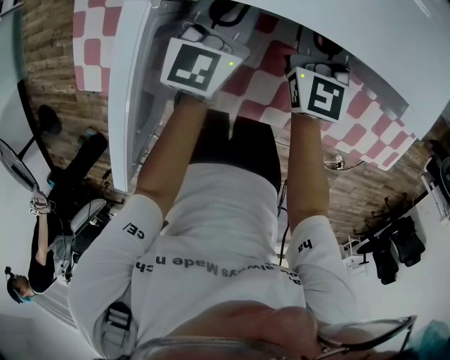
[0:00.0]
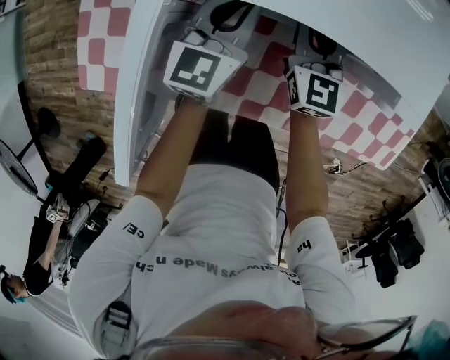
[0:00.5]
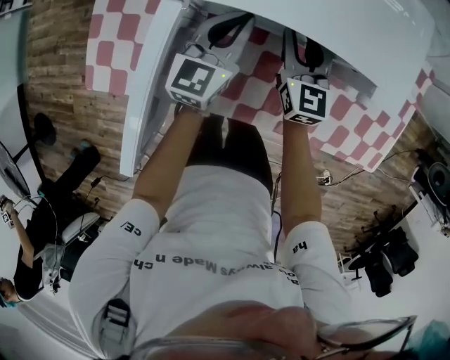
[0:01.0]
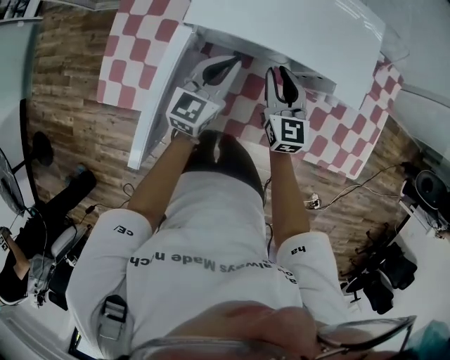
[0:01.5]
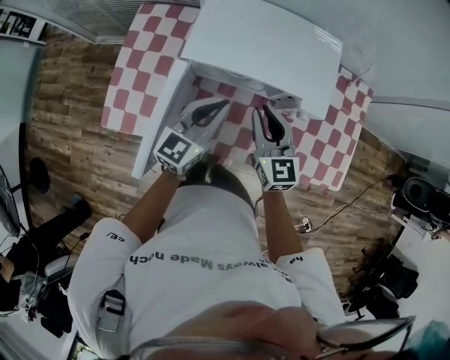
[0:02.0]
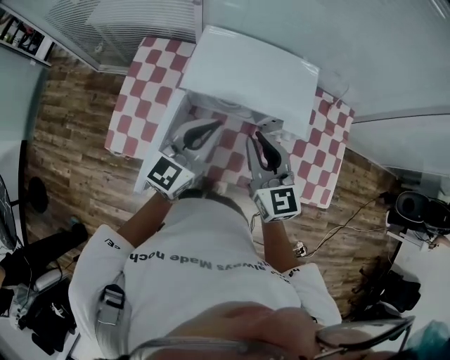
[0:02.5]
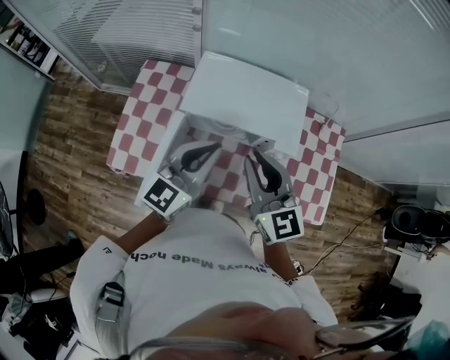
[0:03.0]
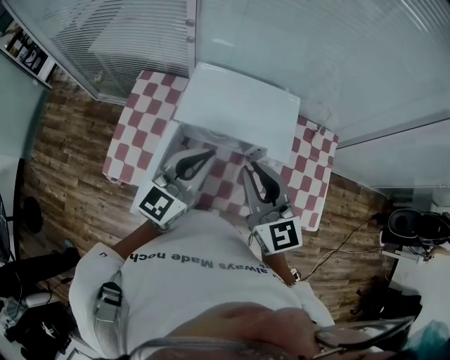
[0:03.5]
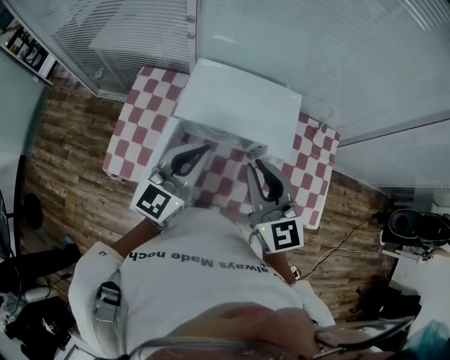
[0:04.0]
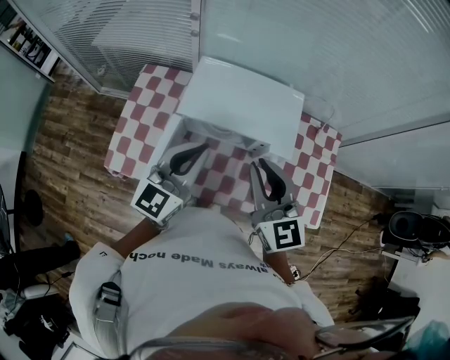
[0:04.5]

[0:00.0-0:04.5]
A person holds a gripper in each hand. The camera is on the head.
0:00.0 to 0:02.0: Both grippers travel together upward and backward, about 25 cm.
0:02.0 to 0:04.5: The two grippers go about 20 cm upward.

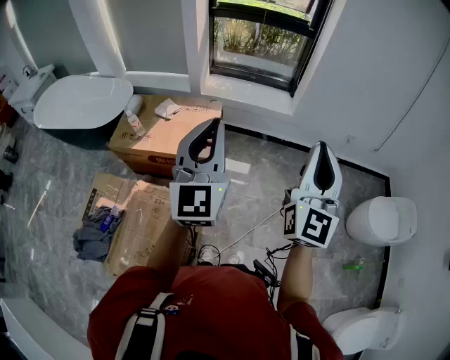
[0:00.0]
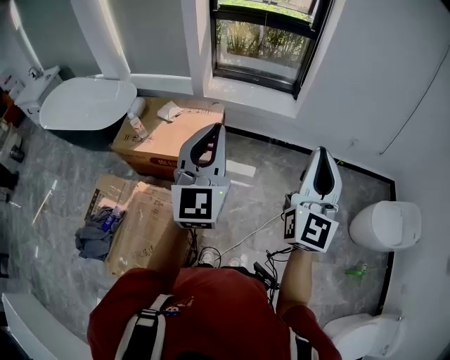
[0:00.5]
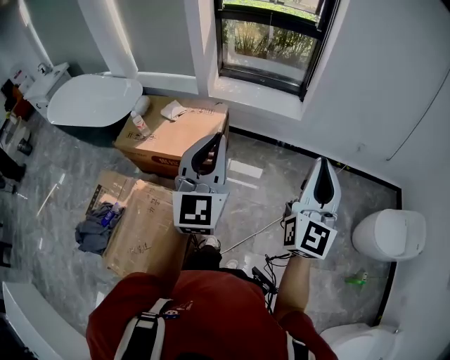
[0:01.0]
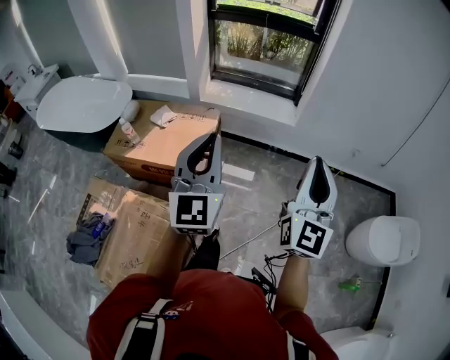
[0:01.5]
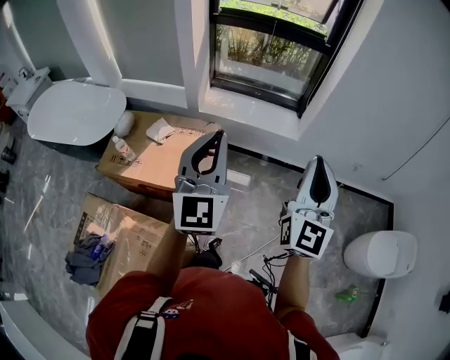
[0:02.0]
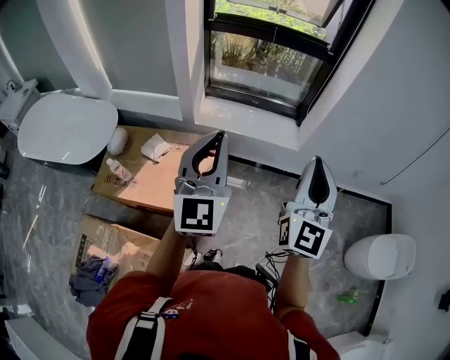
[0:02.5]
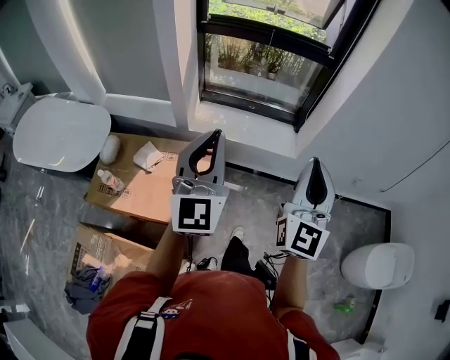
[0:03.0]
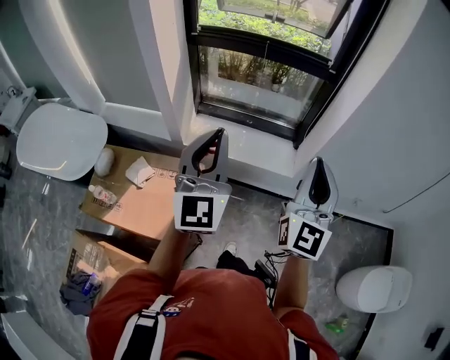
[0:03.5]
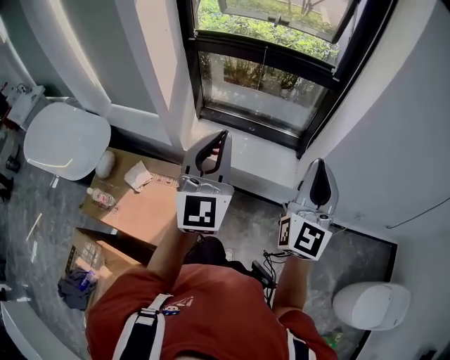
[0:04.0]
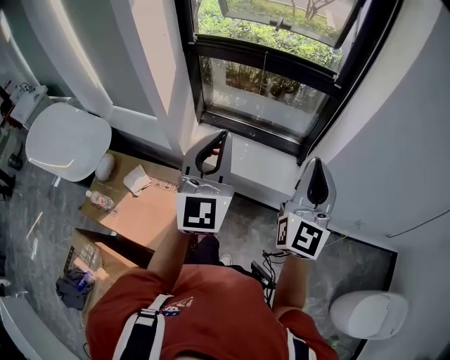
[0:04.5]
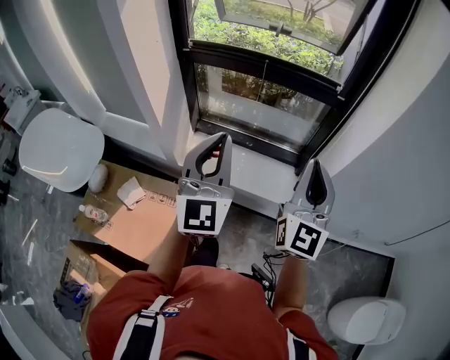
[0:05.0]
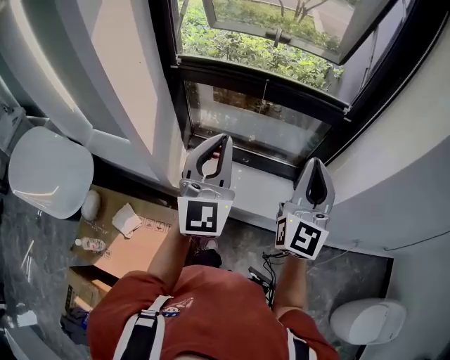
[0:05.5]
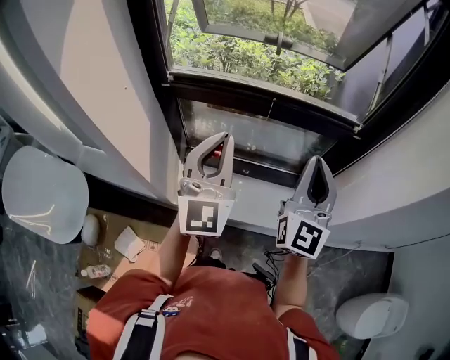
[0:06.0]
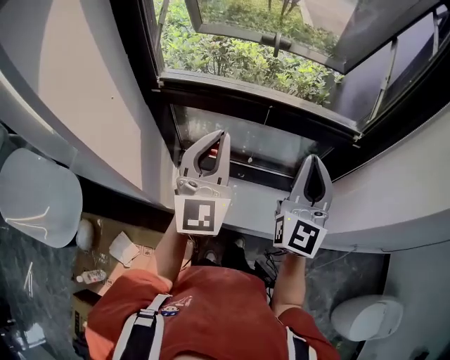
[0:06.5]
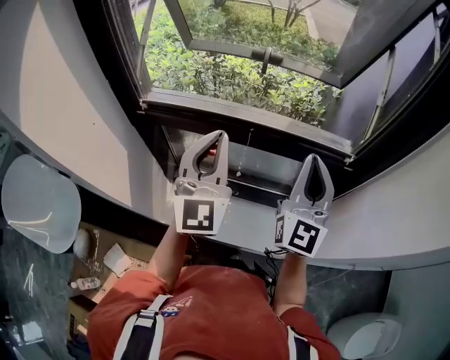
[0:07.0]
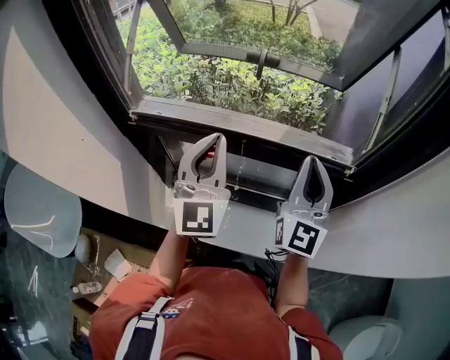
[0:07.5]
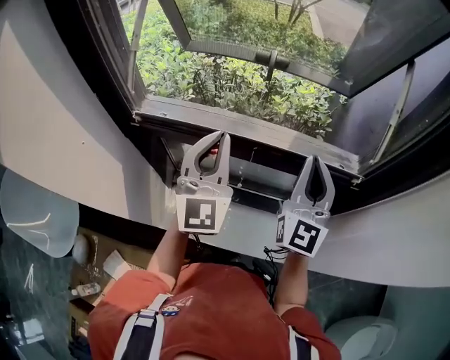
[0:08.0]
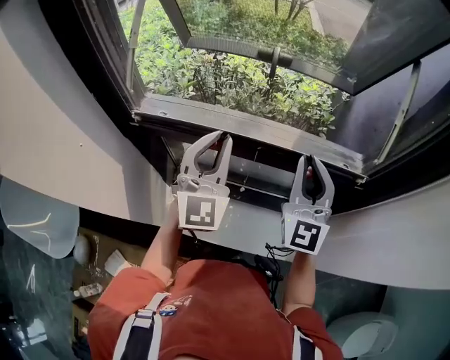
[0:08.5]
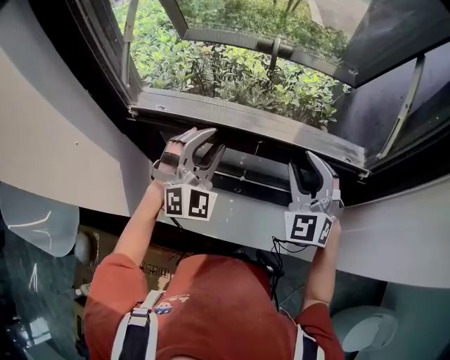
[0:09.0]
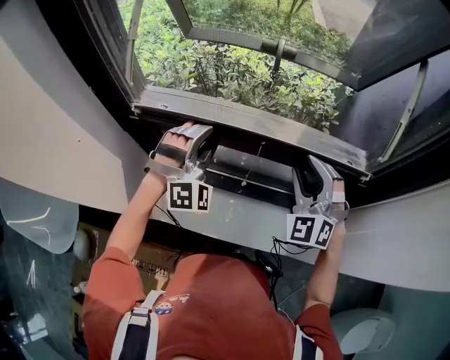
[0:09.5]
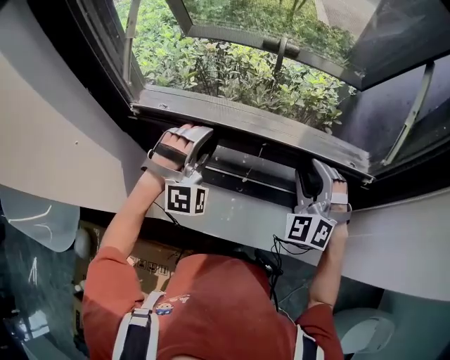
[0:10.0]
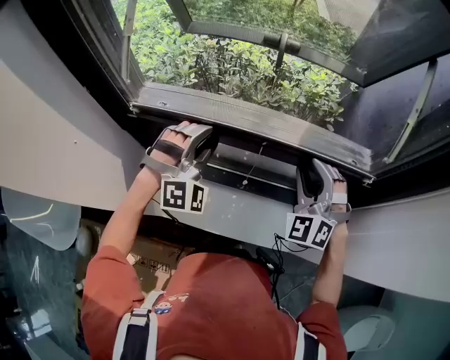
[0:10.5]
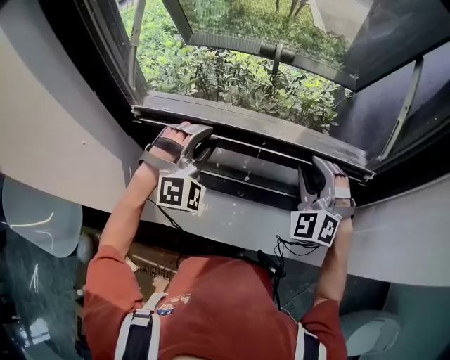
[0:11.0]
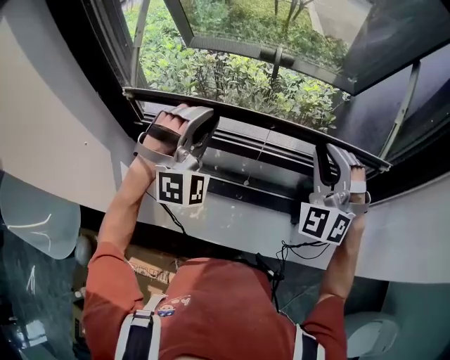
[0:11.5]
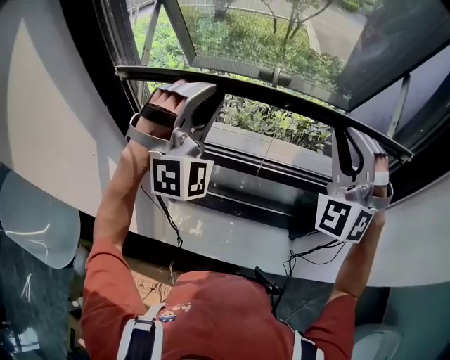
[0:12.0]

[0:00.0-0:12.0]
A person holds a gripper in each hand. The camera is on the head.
0:00.0 to 0:02.0: The two grippers go about 20 cm forward.
0:02.0 to 0:04.0: Both grippers travel together forward, some 35 cm.
0:04.0 to 0:06.0: The grippers both shift forward by approximately 30 cm.
0:06.0 to 0:08.0: The two grippers go roughly 20 cm forward.
0:08.0 to 0:10.0: Both grippers move downward, about 10 cm. The right gripper twists about 50 degrees counterclockwise, seen from behind, and opens its fingers. The left gripper twists some 70 degrees clockwise, seen from behind, and opens.
0:10.0 to 0:12.0: Both grippers travel together upward, roughly 20 cm. The left gripper swivels approximately 20 degrees, and closes its fingers, while the right gripper rotates some 30 degrees, and closes up.

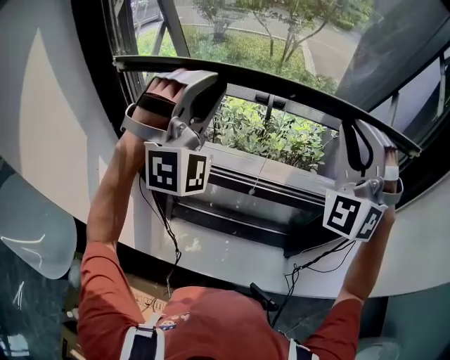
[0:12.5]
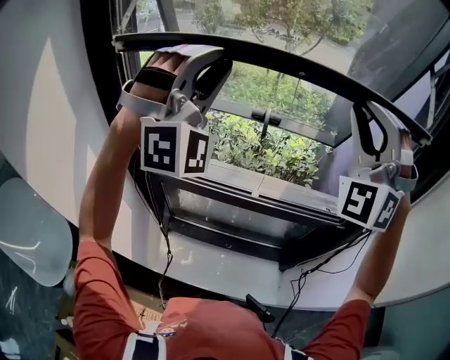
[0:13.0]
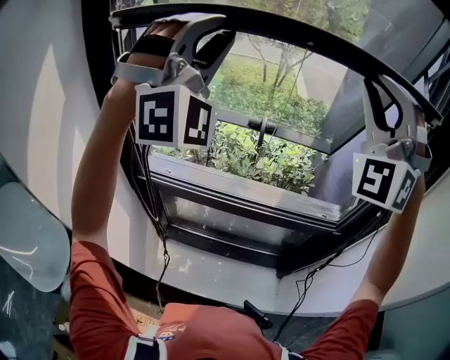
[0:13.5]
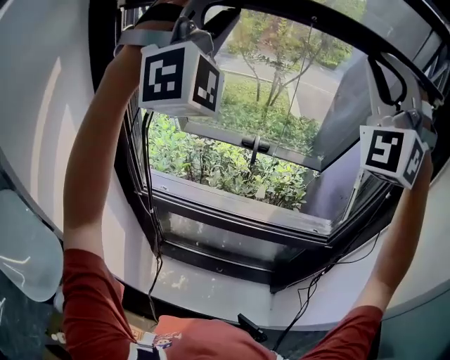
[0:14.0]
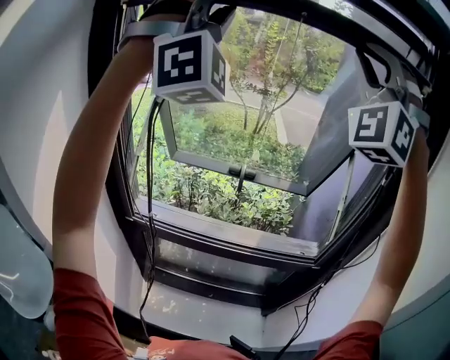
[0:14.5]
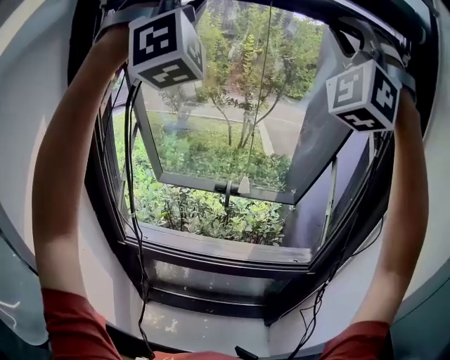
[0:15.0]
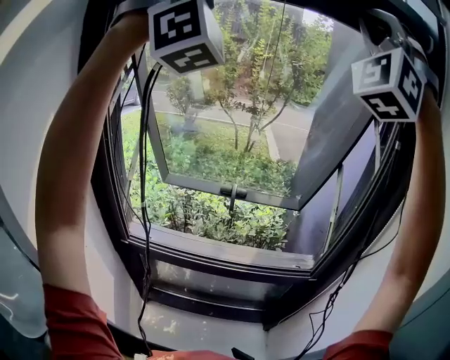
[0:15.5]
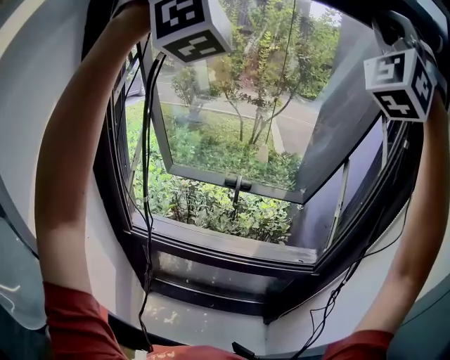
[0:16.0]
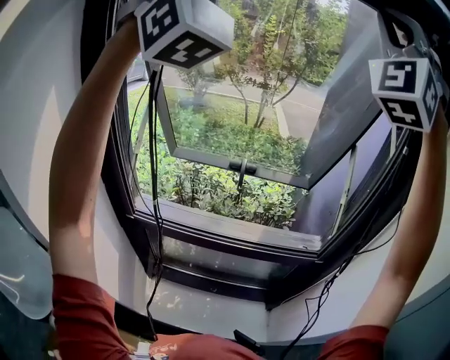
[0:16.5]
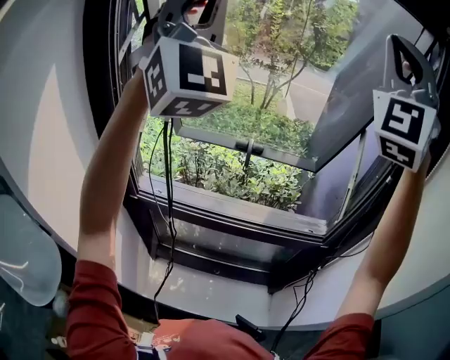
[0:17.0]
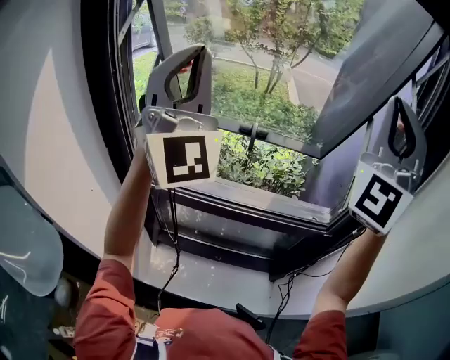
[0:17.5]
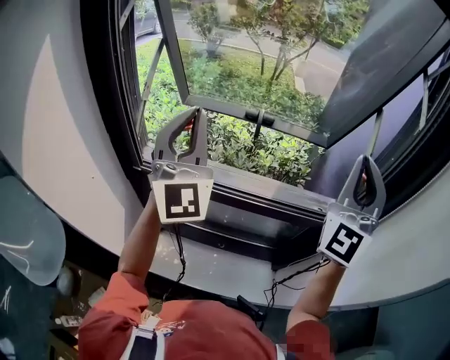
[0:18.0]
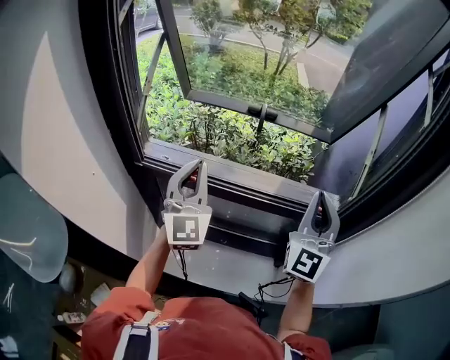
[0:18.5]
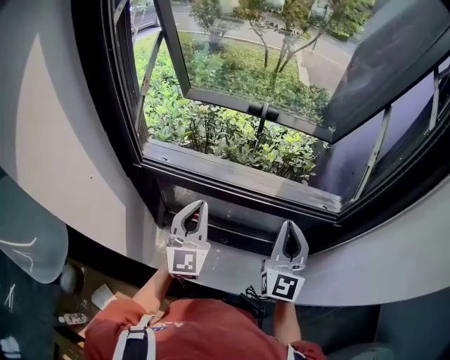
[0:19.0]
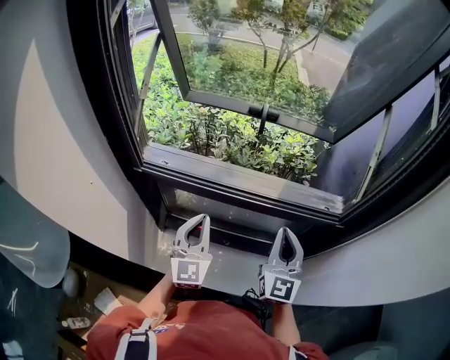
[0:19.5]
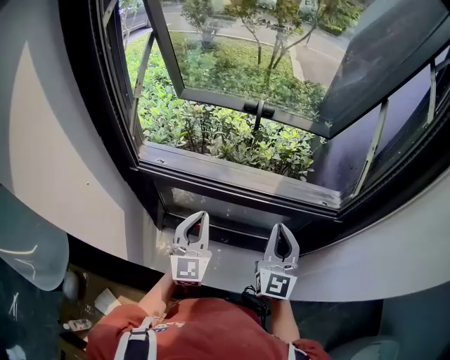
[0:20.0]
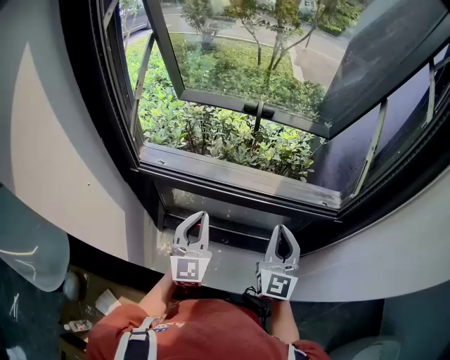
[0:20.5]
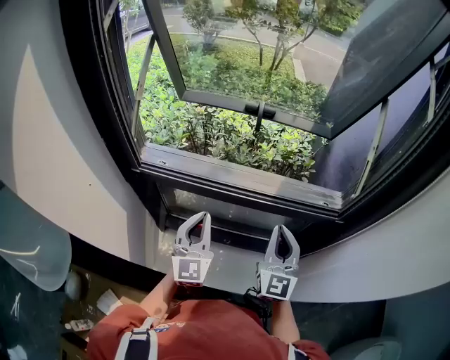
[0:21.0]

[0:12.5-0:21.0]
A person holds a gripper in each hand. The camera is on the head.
0:12.5 to 0:14.5: Both grippers travel together upward, about 30 cm. The left gripper turns by roughly 20 degrees. Meanwhile the right gripper changes its angle by approximately 30 degrees.
0:14.5 to 0:16.5: Both grippers move upward, approximately 5 cm. The left gripper turns by some 20 degrees.
0:16.5 to 0:19.0: The grippers both shift downward by roughly 60 cm. The left gripper rotates around the line of its fingers by approximately 60 degrees, counterclockwise from behind, while the right gripper rotates around the line of its fingers by roughly 70 degrees, clockwise from behind.
0:19.0 to 0:21.0: The grippers stay close to where they were, moving slightly.

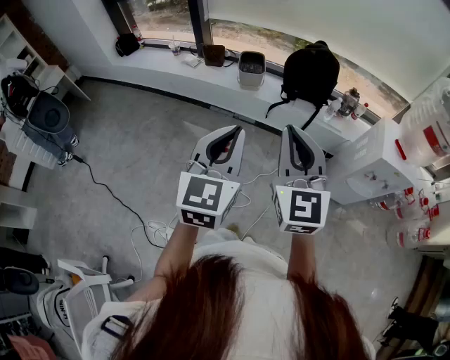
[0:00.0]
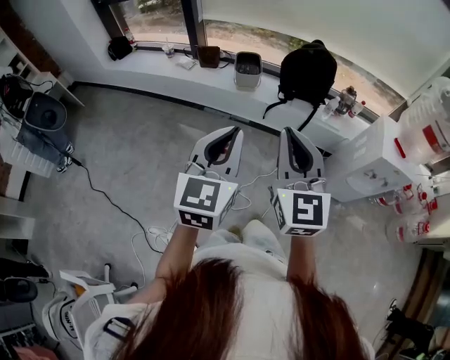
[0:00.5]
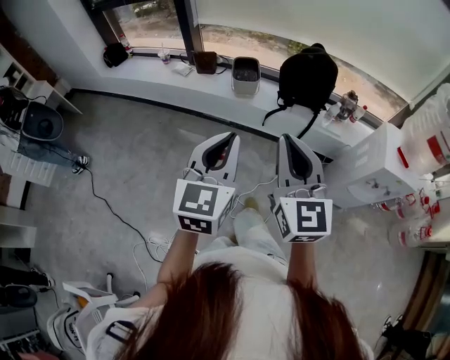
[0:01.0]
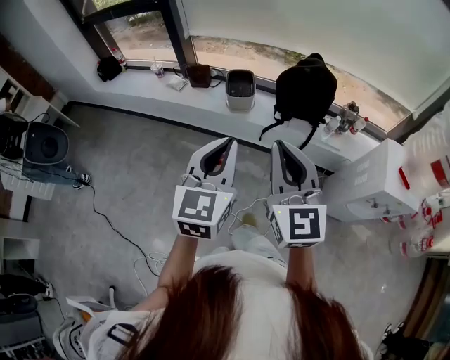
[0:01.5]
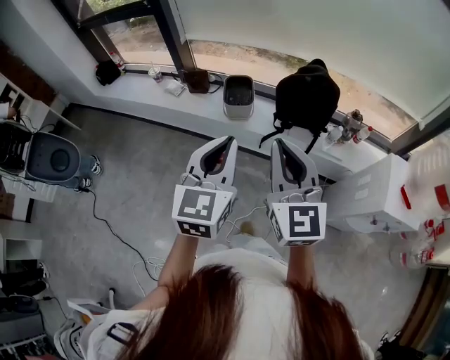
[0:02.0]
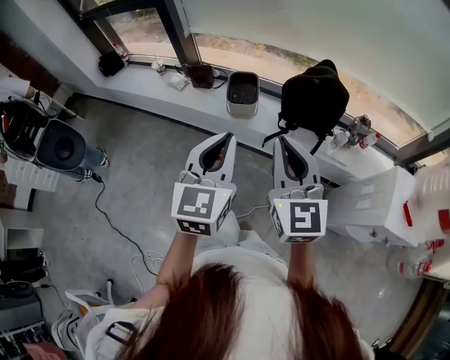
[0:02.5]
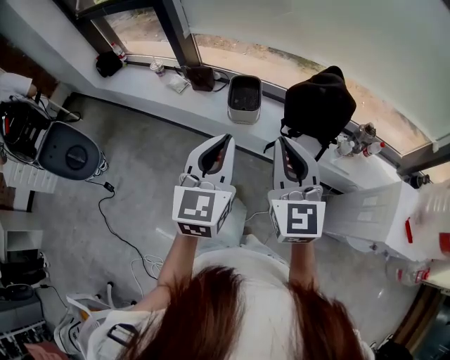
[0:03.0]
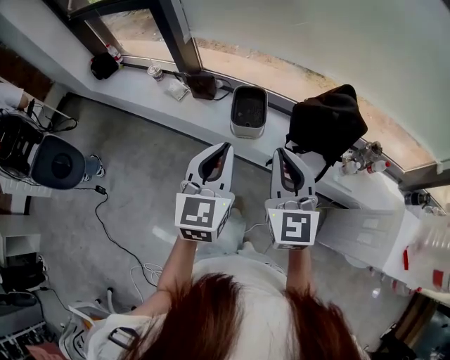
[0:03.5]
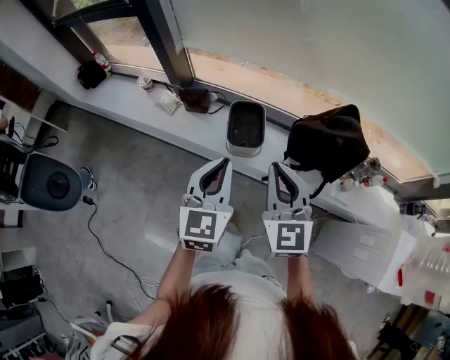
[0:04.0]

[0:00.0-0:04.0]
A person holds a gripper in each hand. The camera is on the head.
0:00.0 to 0:02.0: Both grippers move forward, about 25 cm.
0:02.0 to 0:04.0: The grippers both shift forward by approximately 30 cm.
